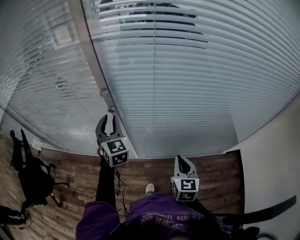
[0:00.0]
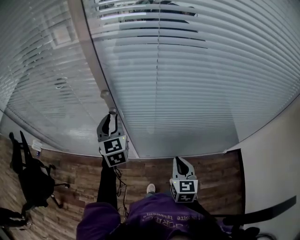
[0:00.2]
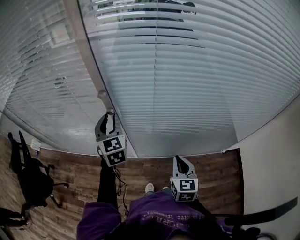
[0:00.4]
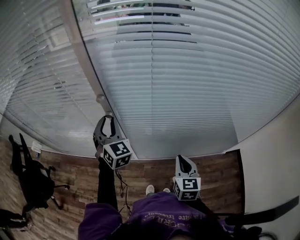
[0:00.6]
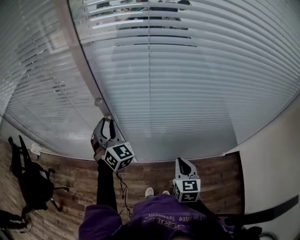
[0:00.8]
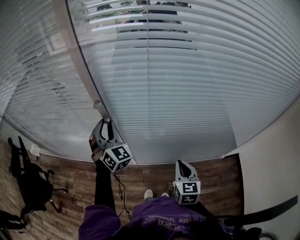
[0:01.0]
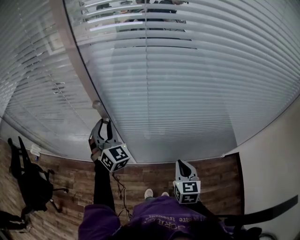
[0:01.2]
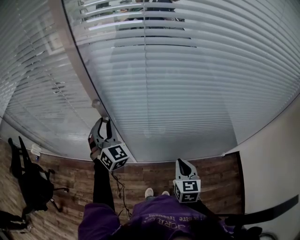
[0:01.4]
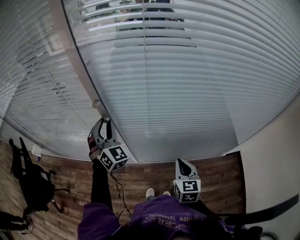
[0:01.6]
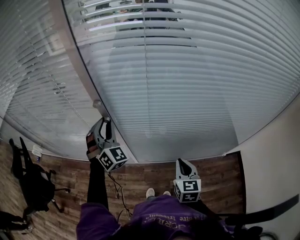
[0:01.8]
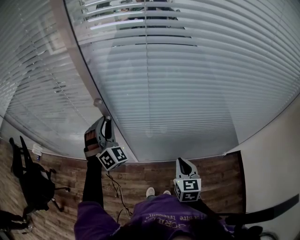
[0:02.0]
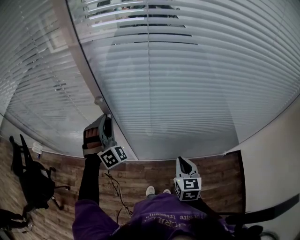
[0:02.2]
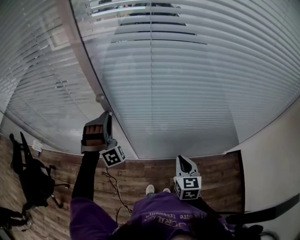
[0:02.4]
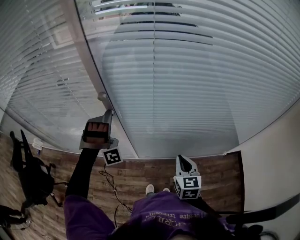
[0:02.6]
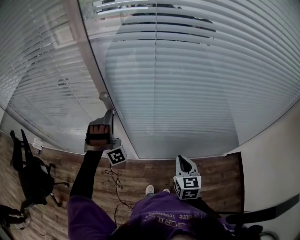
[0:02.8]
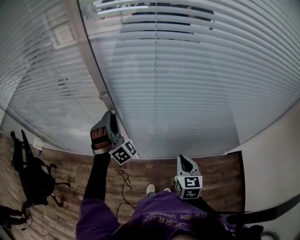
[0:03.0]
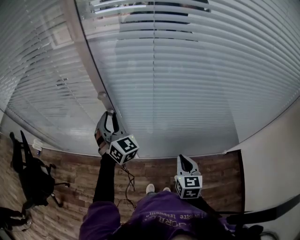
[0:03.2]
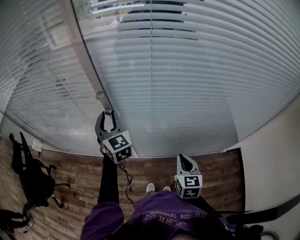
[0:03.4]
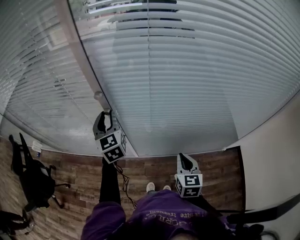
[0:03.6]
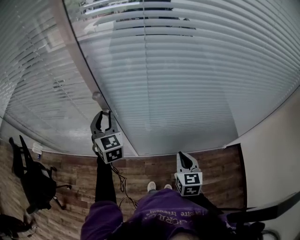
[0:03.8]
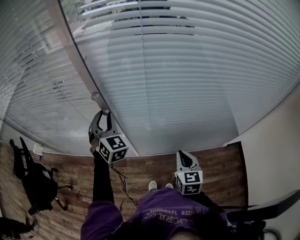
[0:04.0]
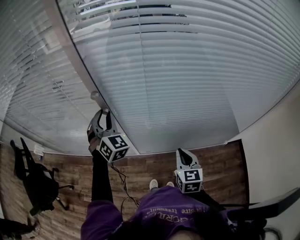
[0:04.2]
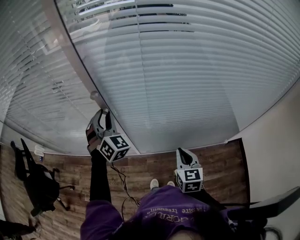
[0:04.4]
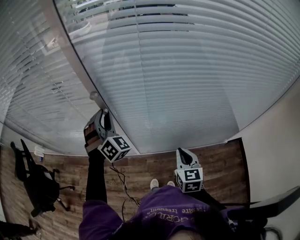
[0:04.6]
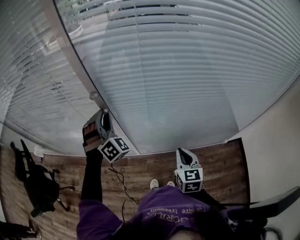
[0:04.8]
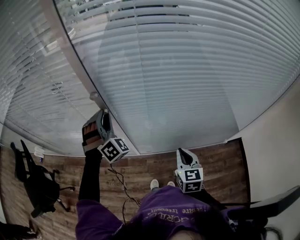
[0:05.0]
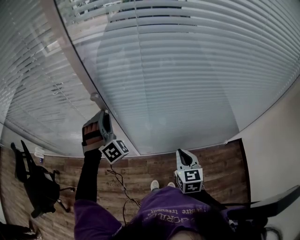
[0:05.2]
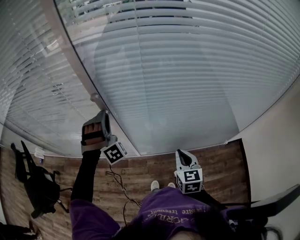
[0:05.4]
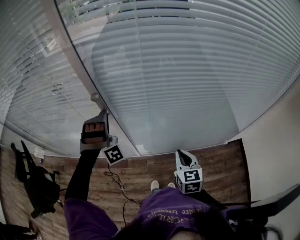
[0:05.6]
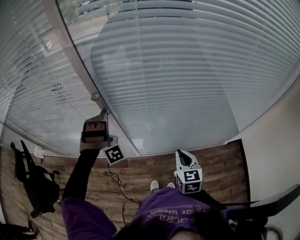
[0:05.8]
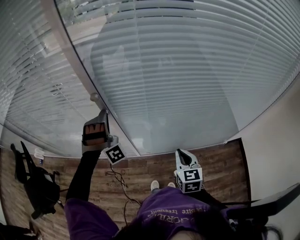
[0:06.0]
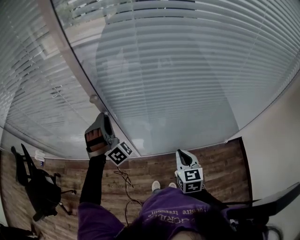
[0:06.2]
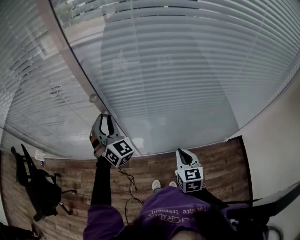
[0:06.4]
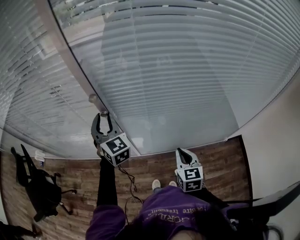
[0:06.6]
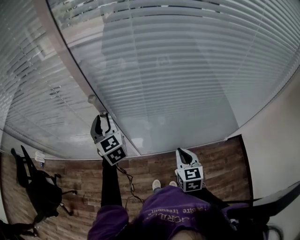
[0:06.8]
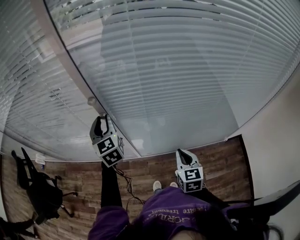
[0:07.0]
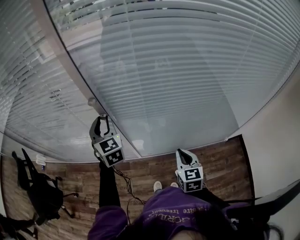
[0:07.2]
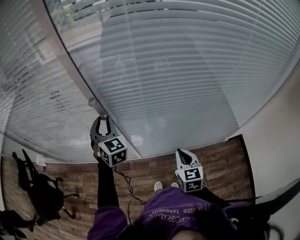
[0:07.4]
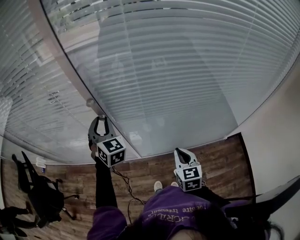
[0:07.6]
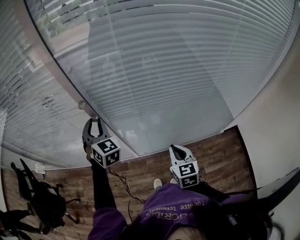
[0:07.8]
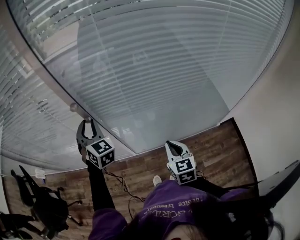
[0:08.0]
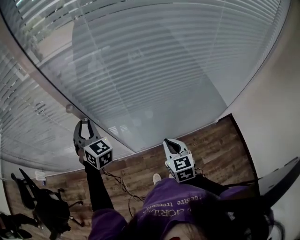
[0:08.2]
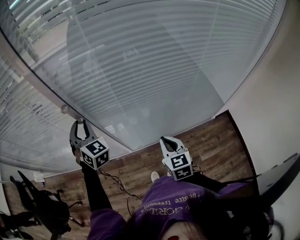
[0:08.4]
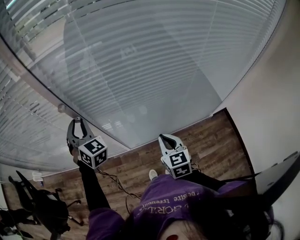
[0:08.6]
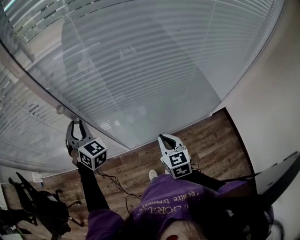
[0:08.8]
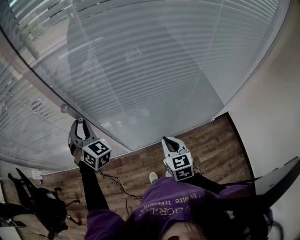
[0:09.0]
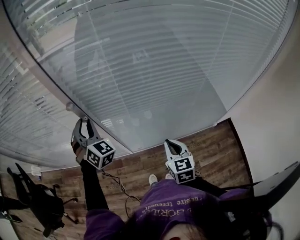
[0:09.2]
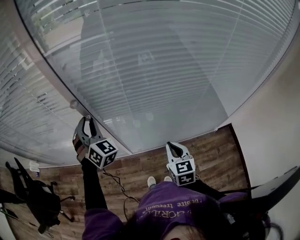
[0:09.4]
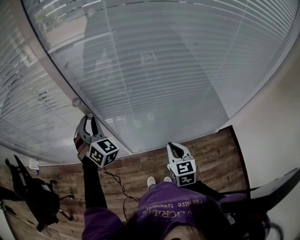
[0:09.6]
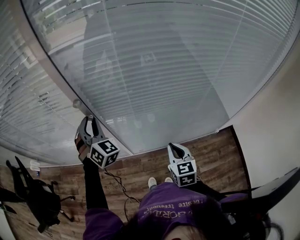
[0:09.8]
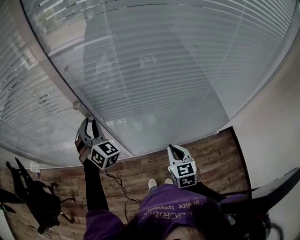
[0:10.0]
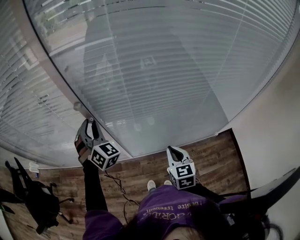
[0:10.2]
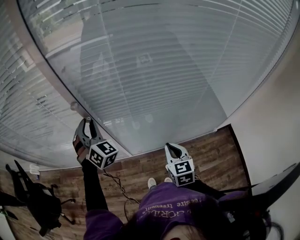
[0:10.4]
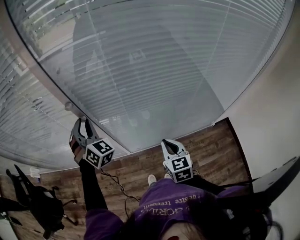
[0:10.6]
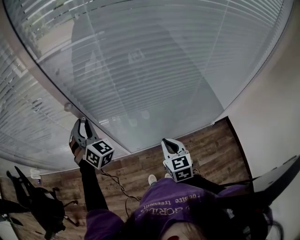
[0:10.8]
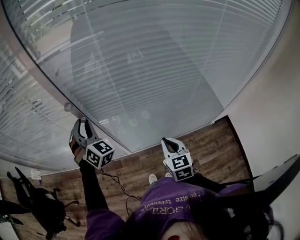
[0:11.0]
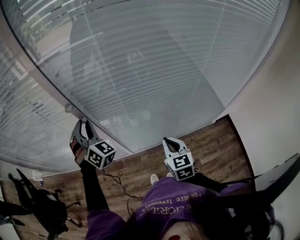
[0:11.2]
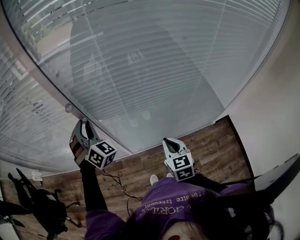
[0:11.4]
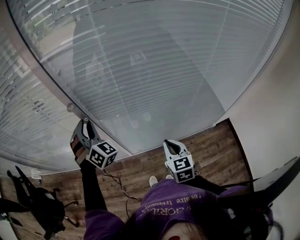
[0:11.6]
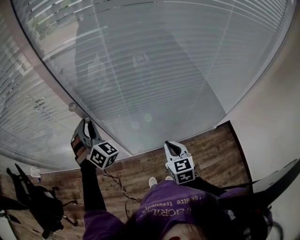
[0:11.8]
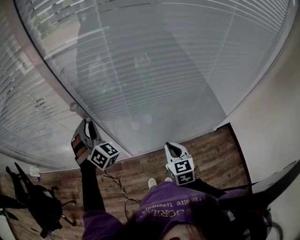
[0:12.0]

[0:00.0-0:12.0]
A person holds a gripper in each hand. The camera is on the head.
0:00.0 to 0:01.6: The left gripper changes its angle by about 30 degrees.
0:01.6 to 0:03.0: The left gripper changes its angle by some 30 degrees.
0:03.0 to 0:04.4: The left gripper rotates some 30 degrees.
0:04.4 to 0:06.0: The left gripper rotates around the line of its fingers by about 50 degrees, clockwise from behind.
0:06.0 to 0:07.6: The left gripper rotates around the line of its fingers by roughly 70 degrees, counterclockwise from behind.
0:07.6 to 0:09.0: The grippers stay close to where they were, moving slightly.
0:09.0 to 0:12.0: The grippers move only a little.

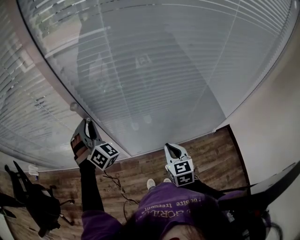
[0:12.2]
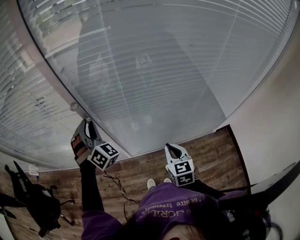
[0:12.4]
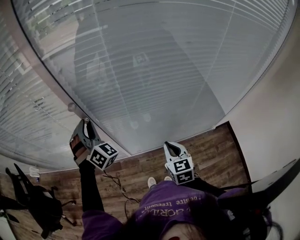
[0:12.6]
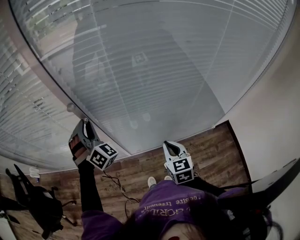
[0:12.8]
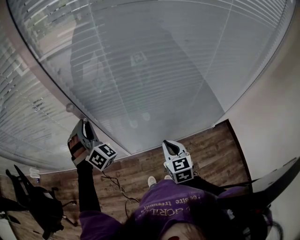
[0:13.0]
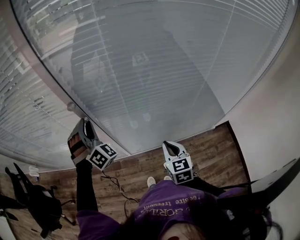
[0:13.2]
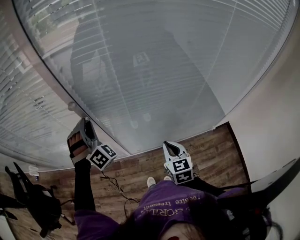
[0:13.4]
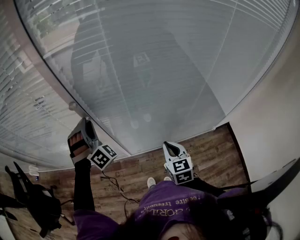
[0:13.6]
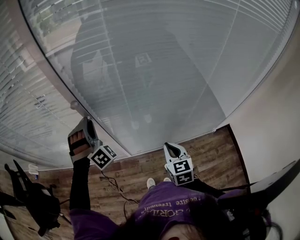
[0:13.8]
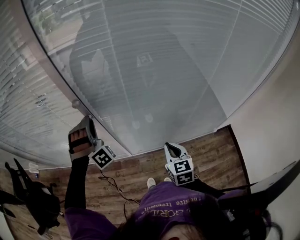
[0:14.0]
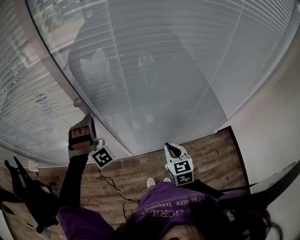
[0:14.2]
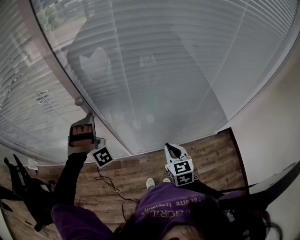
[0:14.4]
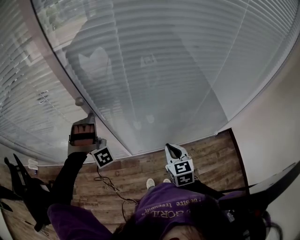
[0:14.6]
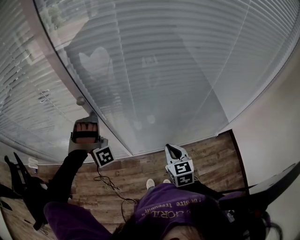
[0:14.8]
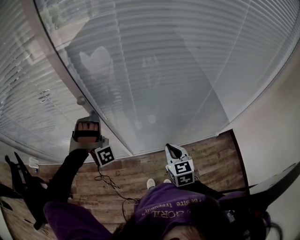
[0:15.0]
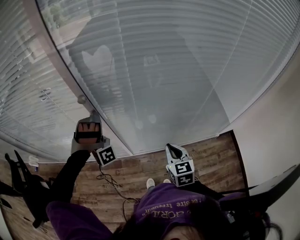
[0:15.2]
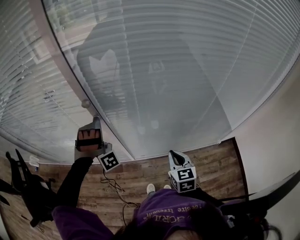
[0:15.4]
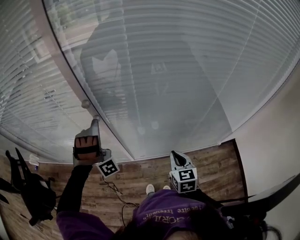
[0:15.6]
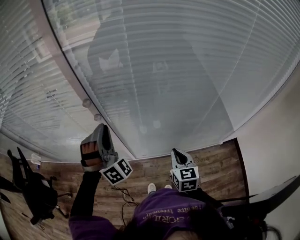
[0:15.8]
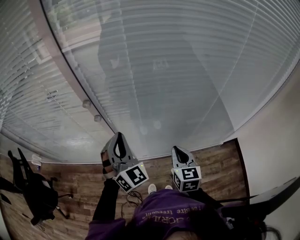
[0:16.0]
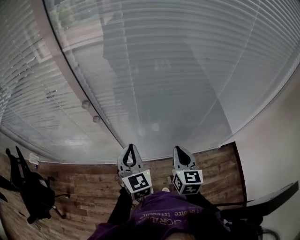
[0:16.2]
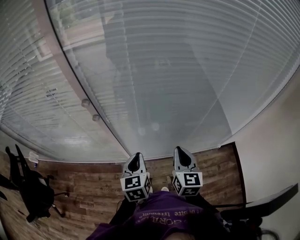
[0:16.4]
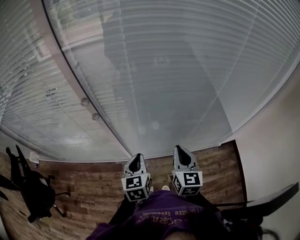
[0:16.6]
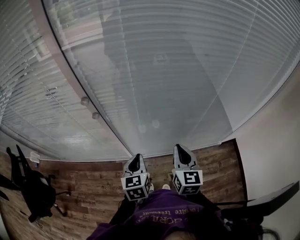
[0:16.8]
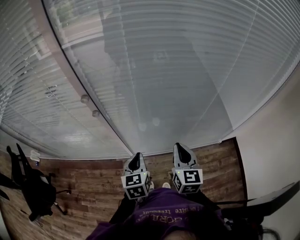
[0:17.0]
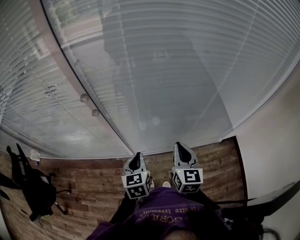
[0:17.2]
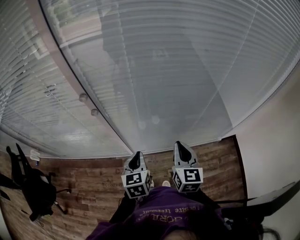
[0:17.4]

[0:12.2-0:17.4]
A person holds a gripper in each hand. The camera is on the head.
0:12.2 to 0:14.0: The left gripper turns by about 30 degrees.
0:14.0 to 0:15.6: The left gripper turns by about 20 degrees.
0:15.6 to 0:17.4: The left gripper moves to the right, downward and backward, roughly 25 cm, rolls counterclockwise, seen from behind, by about 110 degrees, and closes. Meanwhile the right gripper goes some 5 cm upward.

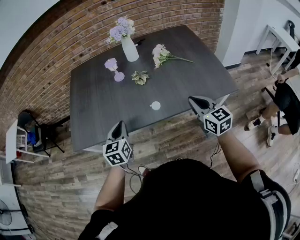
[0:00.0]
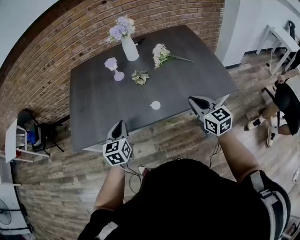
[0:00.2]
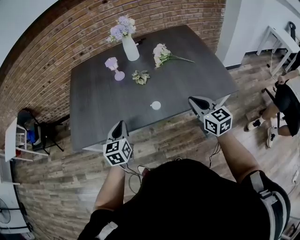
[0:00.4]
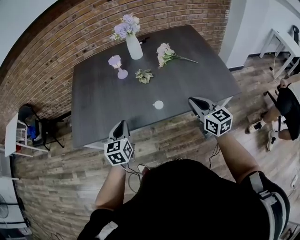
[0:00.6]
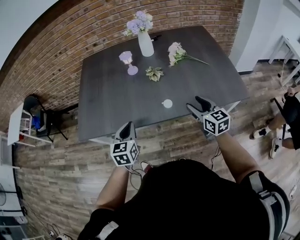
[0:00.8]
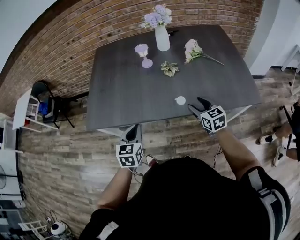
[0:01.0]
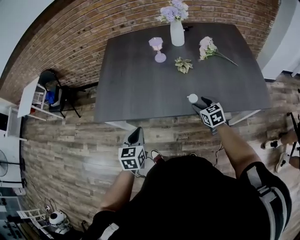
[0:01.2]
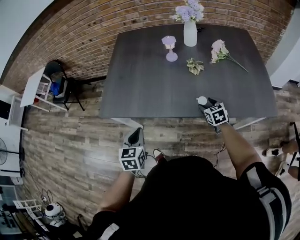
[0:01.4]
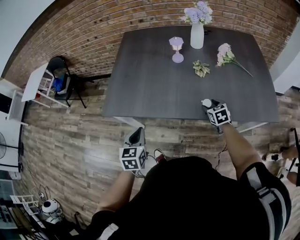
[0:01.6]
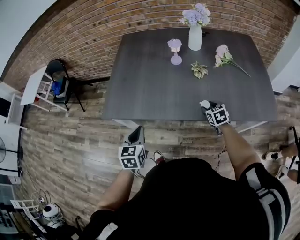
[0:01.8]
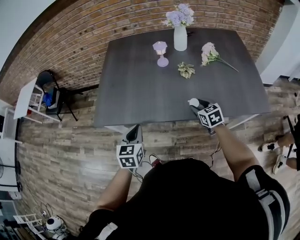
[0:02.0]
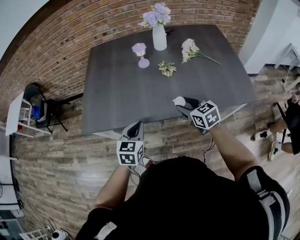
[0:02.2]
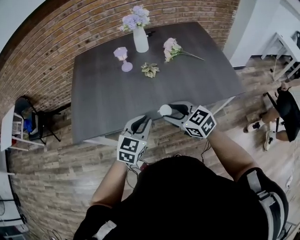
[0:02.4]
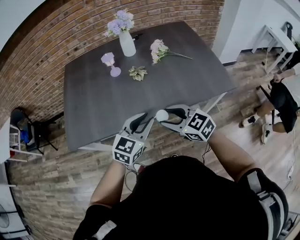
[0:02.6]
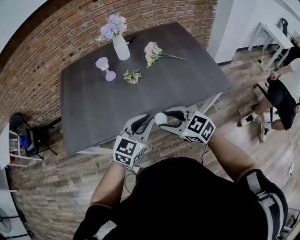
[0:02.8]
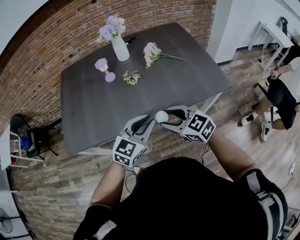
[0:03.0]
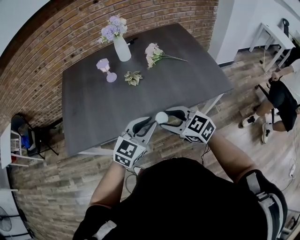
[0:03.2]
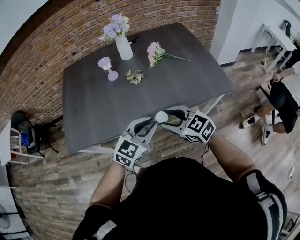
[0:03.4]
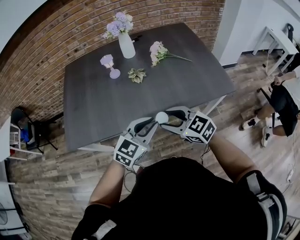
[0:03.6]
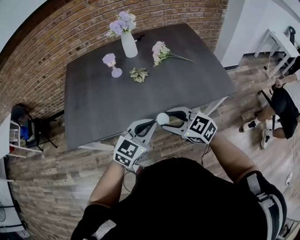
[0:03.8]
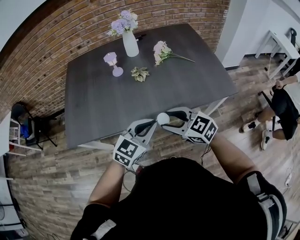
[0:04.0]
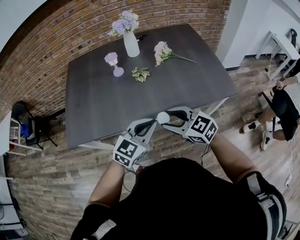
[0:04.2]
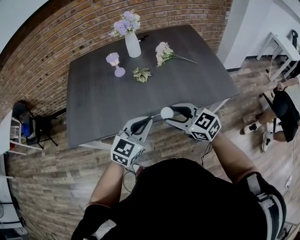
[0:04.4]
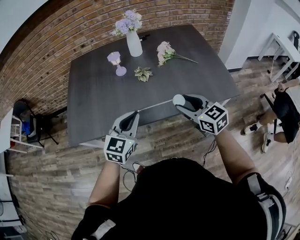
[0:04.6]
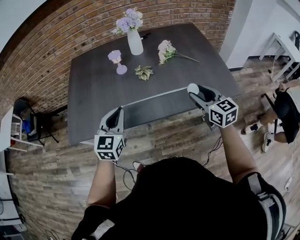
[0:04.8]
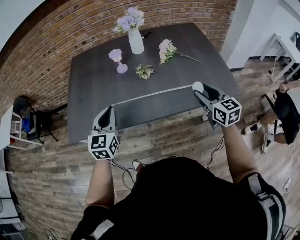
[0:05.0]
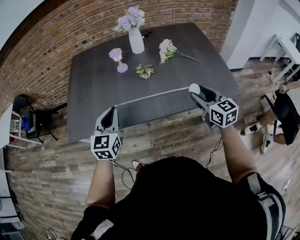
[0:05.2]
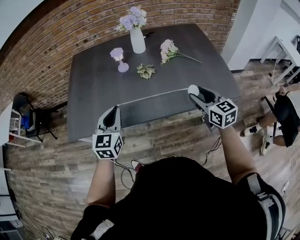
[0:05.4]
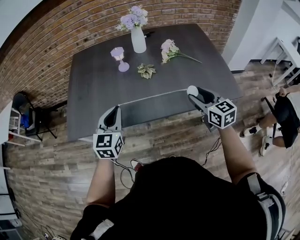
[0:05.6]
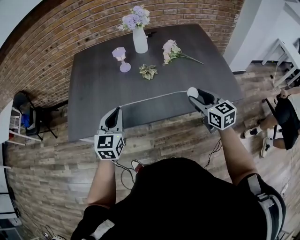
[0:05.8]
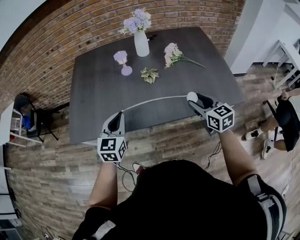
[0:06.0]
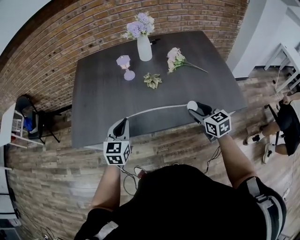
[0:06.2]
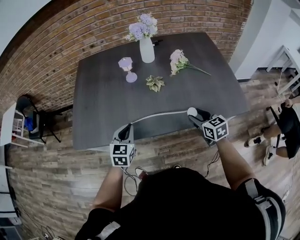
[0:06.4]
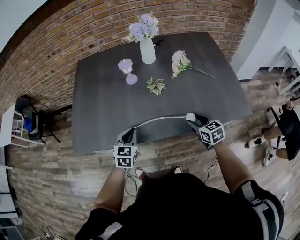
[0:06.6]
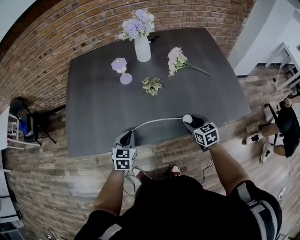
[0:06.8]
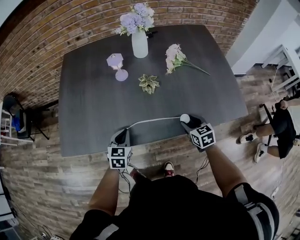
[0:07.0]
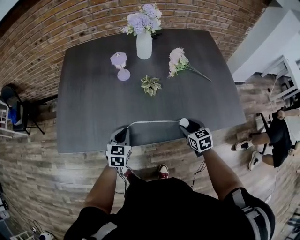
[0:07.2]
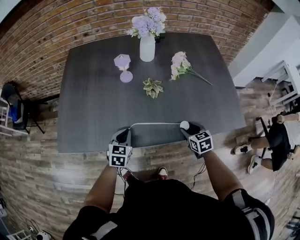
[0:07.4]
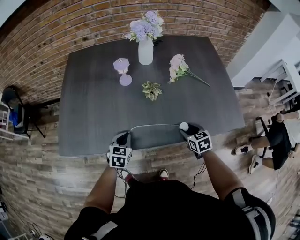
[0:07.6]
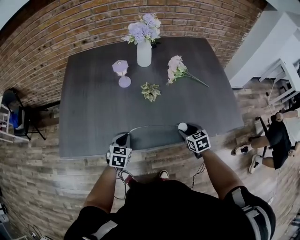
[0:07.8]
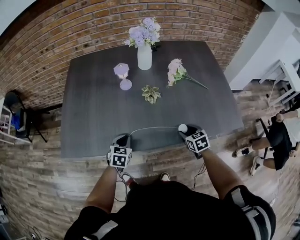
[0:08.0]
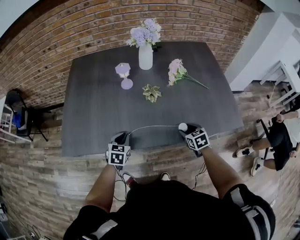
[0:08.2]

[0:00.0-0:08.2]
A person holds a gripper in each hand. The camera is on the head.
0:00.0 to 0:01.6: The right gripper travels downward, forward and to the left by approximately 25 cm, points its fingers approximately 30 degrees further downward, and opens up. Meanwhile the left gripper shifts some 15 cm to the left and backward.
0:01.6 to 0:03.2: The left gripper is displaced to the right by roughly 30 cm, and rotates about 60 degrees. The right gripper goes about 25 cm upward and backward, and swivels approximately 30 degrees.
0:03.2 to 0:05.0: The left gripper is displaced to the left by roughly 20 cm, and turns by roughly 40 degrees. Meanwhile the right gripper goes roughly 15 cm to the right and forward, and turns by some 30 degrees.
0:05.0 to 0:06.6: Both grippers move downward, approximately 15 cm. The right gripper turns by some 20 degrees.
0:06.6 to 0:08.2: Both grippers move downward, approximately 5 cm.
